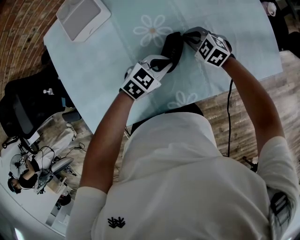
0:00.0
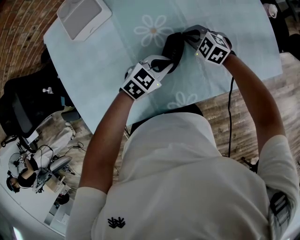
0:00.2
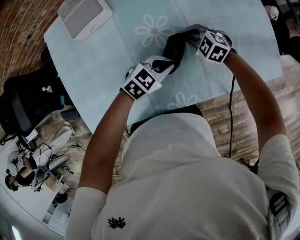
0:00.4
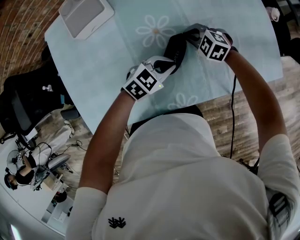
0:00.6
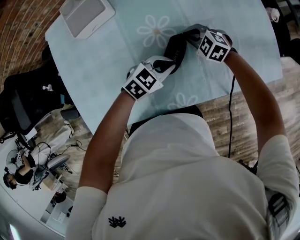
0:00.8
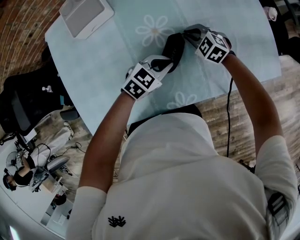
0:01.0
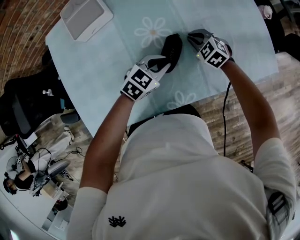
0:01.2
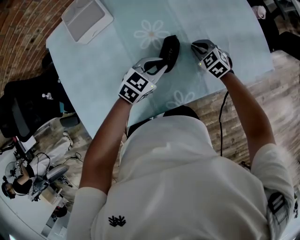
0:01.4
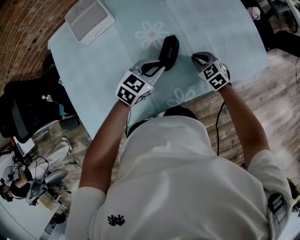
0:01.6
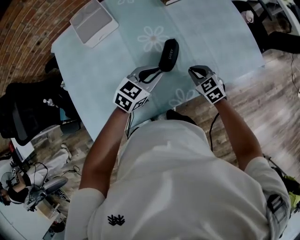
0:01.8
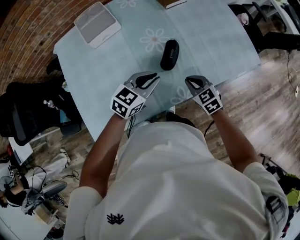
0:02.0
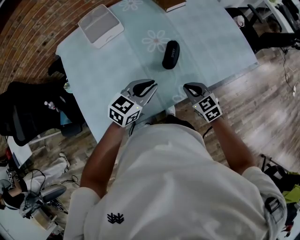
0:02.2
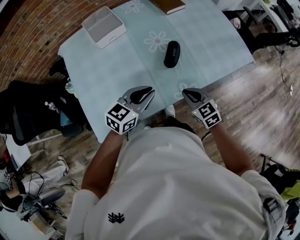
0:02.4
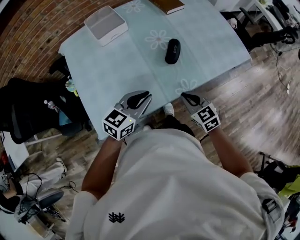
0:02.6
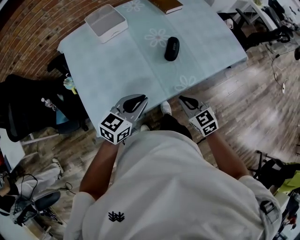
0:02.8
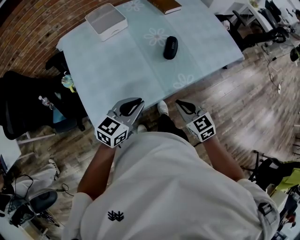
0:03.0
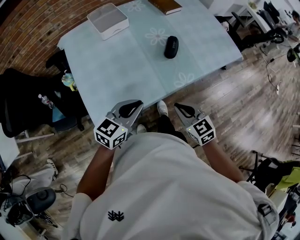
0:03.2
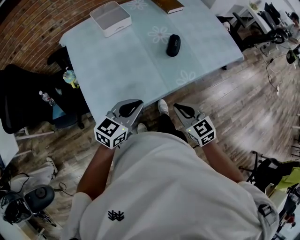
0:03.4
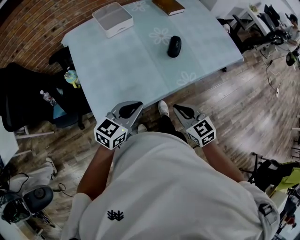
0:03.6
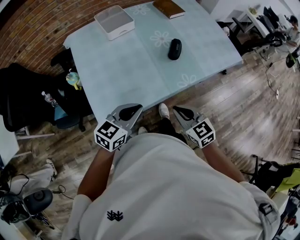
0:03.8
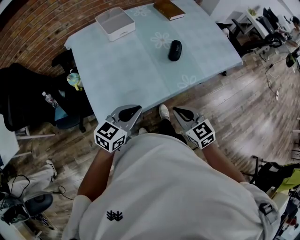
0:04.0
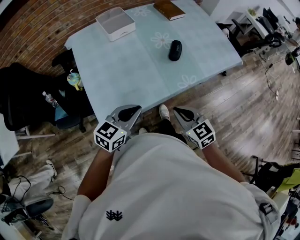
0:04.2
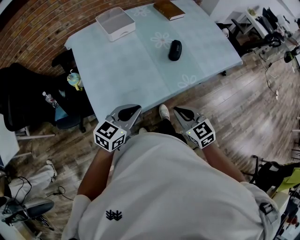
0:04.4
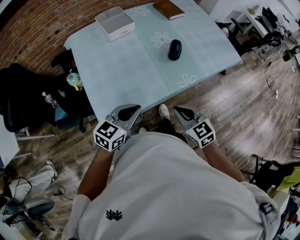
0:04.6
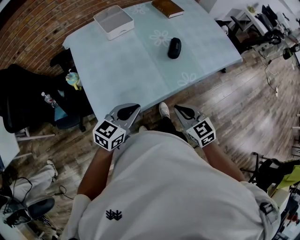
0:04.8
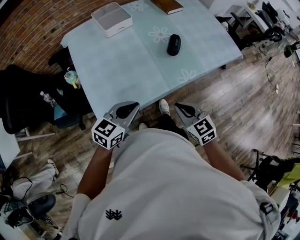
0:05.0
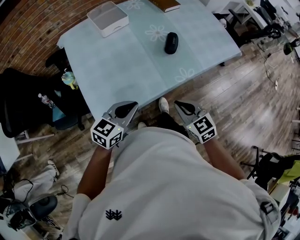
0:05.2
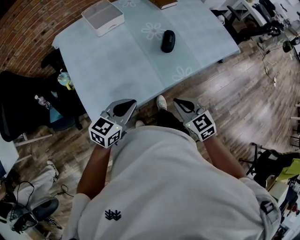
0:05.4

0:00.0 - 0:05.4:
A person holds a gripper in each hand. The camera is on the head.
0:00.0 - 0:01.4: The right gripper changes place by some 5 cm.
0:01.4 - 0:02.8: The left gripper heads backward, to the left and upward, covering some 35 cm, and turns by some 20 degrees, while the right gripper moves backward, roughly 35 cm, and swivels approximately 20 degrees.
0:02.8 - 0:04.0: The two grippers go approximately 10 cm backward and to the left.
0:04.0 - 0:05.4: The grippers make only small movements.

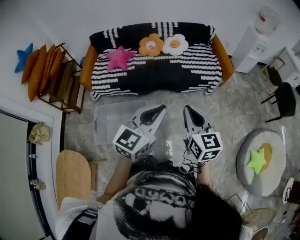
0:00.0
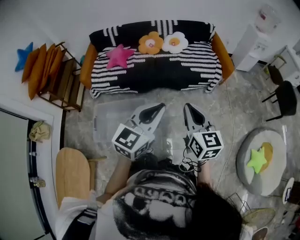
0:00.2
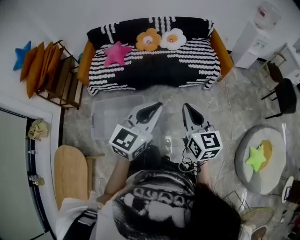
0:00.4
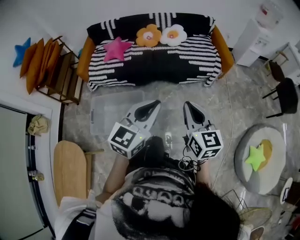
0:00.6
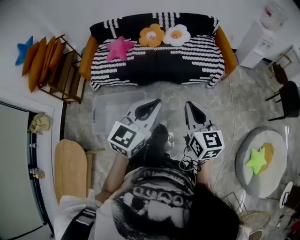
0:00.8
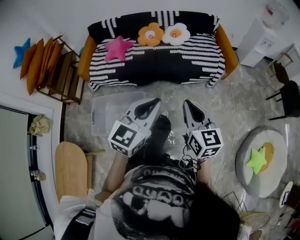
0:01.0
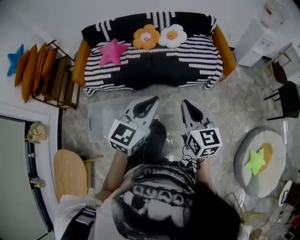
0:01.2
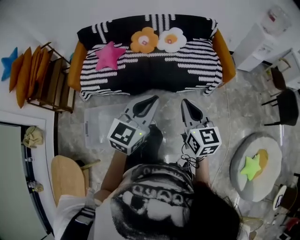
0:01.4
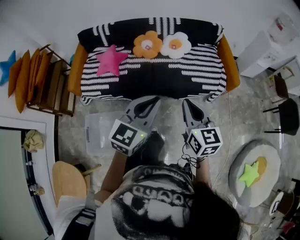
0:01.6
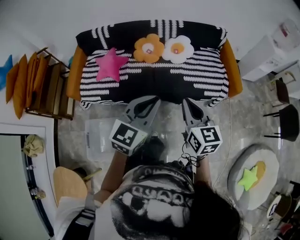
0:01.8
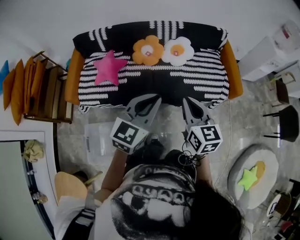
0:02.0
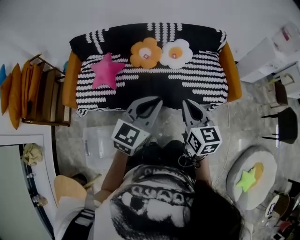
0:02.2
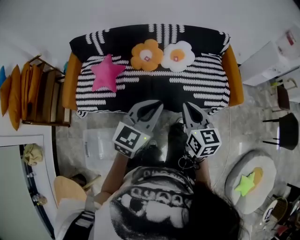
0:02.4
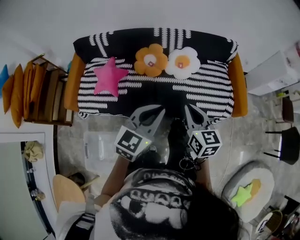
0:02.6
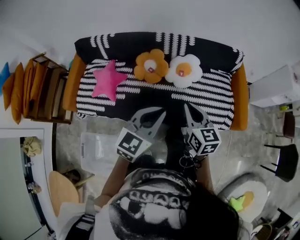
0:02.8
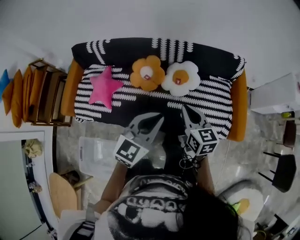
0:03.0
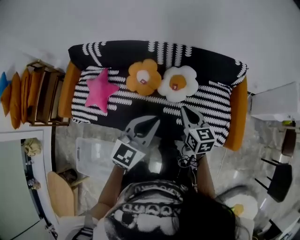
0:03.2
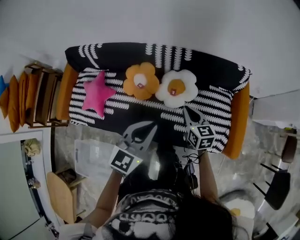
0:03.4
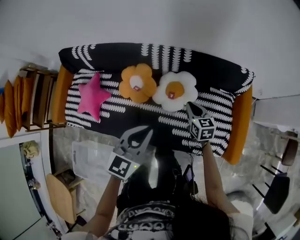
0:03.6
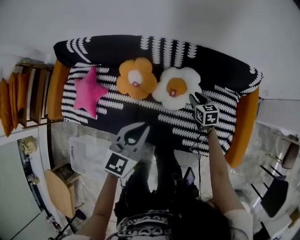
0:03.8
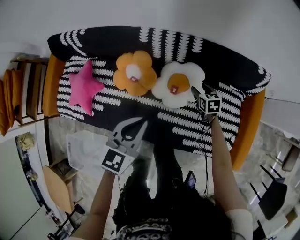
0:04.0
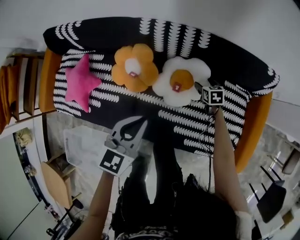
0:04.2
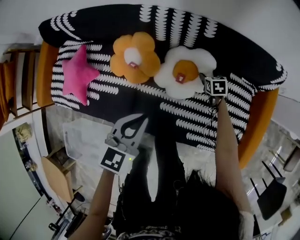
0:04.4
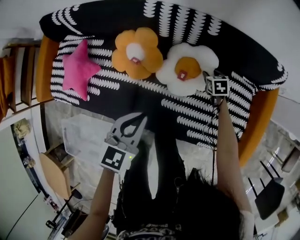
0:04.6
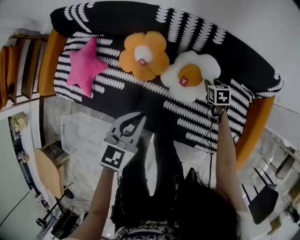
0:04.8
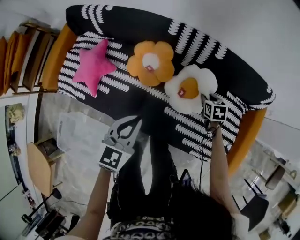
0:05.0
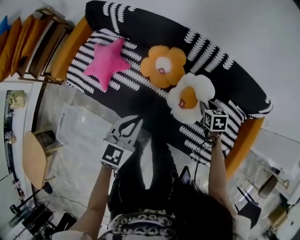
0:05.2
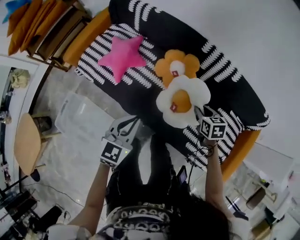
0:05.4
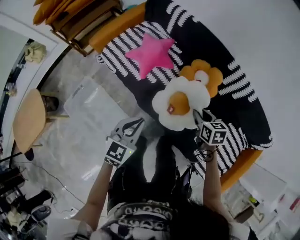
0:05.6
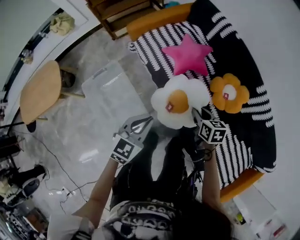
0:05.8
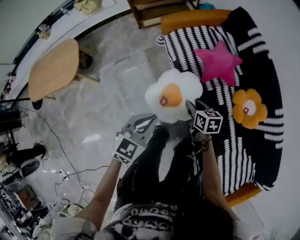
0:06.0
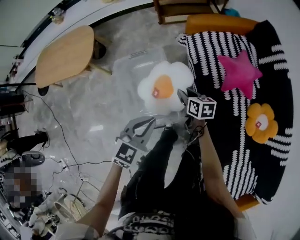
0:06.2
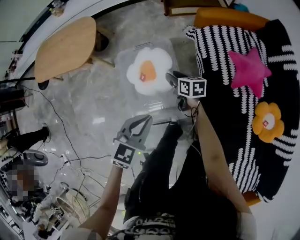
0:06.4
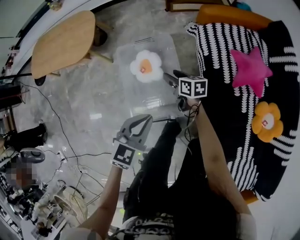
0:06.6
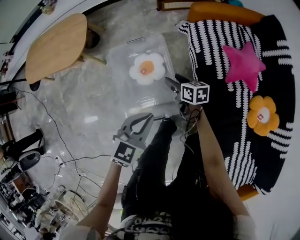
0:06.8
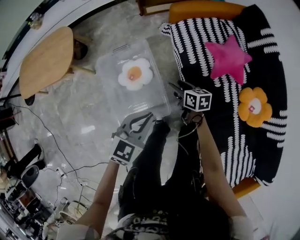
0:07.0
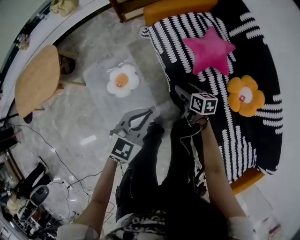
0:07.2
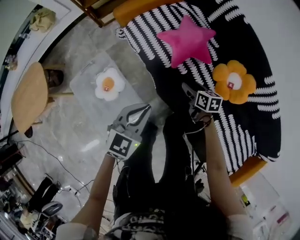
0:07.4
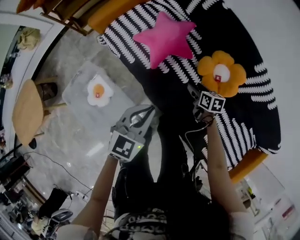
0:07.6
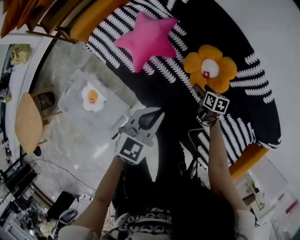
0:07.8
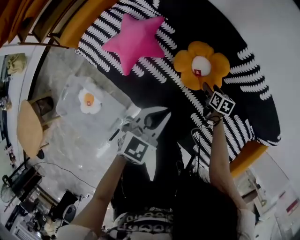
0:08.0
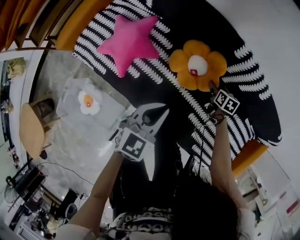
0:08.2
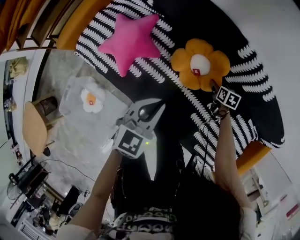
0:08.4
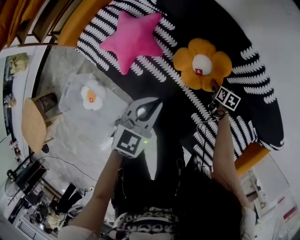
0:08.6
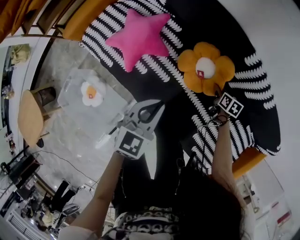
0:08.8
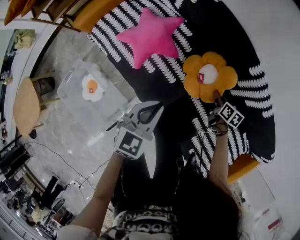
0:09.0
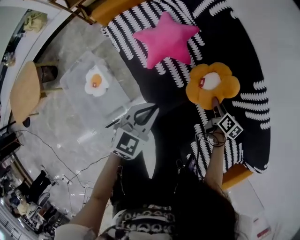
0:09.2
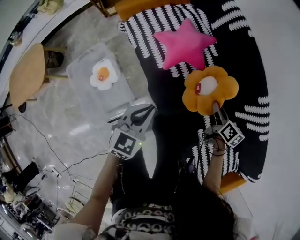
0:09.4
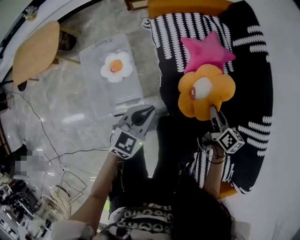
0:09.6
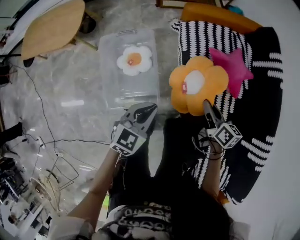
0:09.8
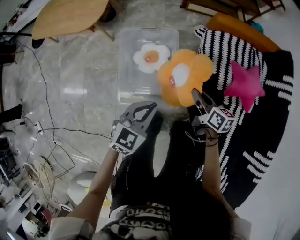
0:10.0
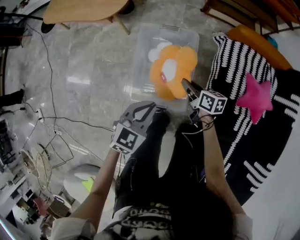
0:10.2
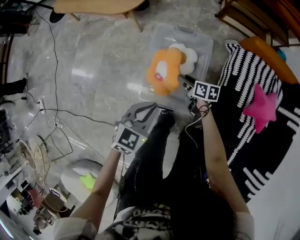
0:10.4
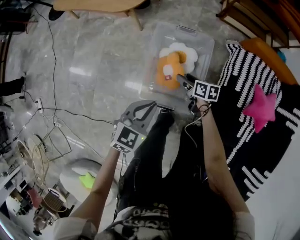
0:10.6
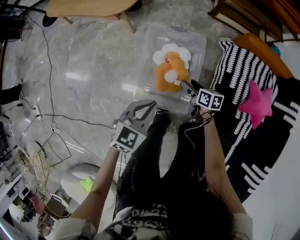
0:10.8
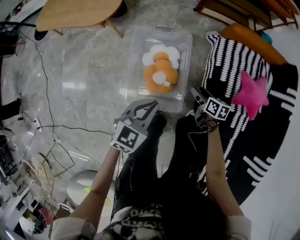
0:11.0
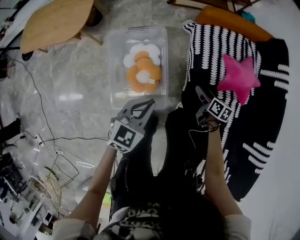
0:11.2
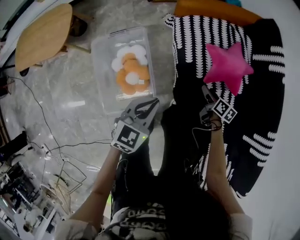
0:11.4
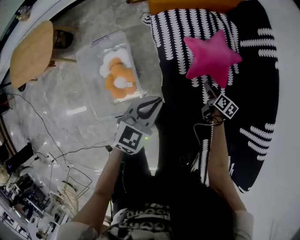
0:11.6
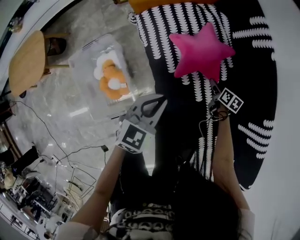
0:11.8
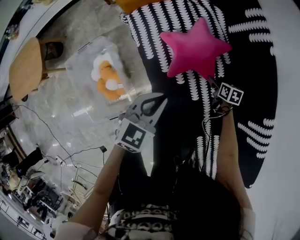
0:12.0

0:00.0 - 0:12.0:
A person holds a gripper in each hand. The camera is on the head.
0:00.0 - 0:01.6: The grippers both shift forward by some 30 cm.
0:01.6 - 0:03.0: Both grippers are carried forward, approximately 40 cm.
0:03.0 - 0:04.4: The right gripper is displaced downward and forward by approximately 60 cm, tips its fingers downward by roughly 40 degrees, and opens its fingers. Meanwhile the left gripper goes about 35 cm downward and forward, and turns by about 30 degrees.
0:04.4 - 0:06.0: The pair of grippers is taken approximately 70 cm. The right gripper rotates approximately 50 degrees, and closes. The left gripper swivels about 50 degrees.
0:06.0 - 0:07.6: The left gripper ends up roughly 25 cm from where it was, and turns by about 20 degrees. The right gripper ends up roughly 35 cm from where it was, turns by approximately 30 degrees, and opens its fingers.
0:07.6 - 0:09.0: The right gripper goes downward and returns, approximately 10 cm each way, and closes its fingers.
0:09.0 - 0:10.4: The two grippers travel together, approximately 80 cm. The left gripper swivels some 50 degrees; the right gripper swivels approximately 80 degrees, and opens up.
0:10.4 - 0:12.0: The two grippers travel together, roughly 70 cm. The right gripper changes its angle by about 40 degrees, and opens. Meanwhile the left gripper changes its angle by roughly 40 degrees.

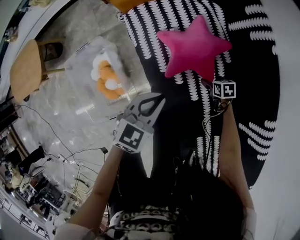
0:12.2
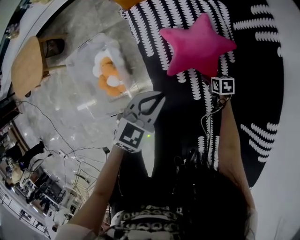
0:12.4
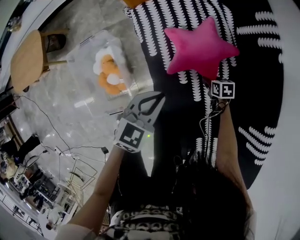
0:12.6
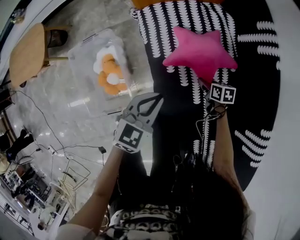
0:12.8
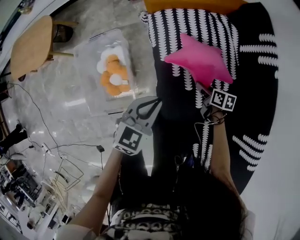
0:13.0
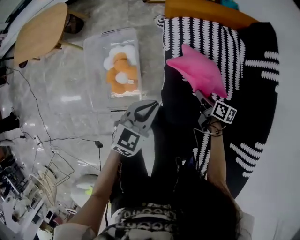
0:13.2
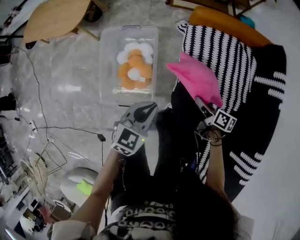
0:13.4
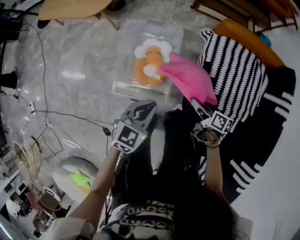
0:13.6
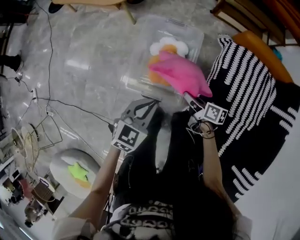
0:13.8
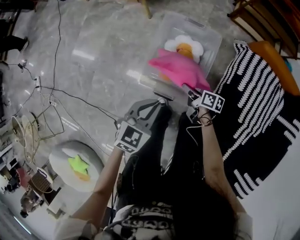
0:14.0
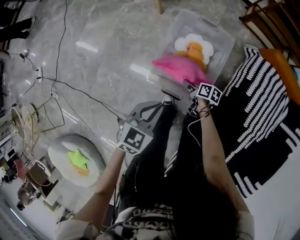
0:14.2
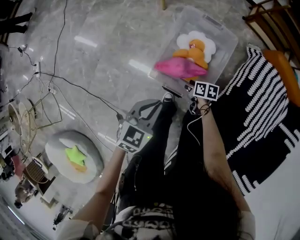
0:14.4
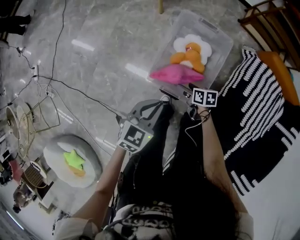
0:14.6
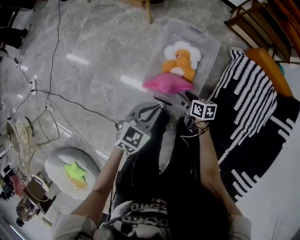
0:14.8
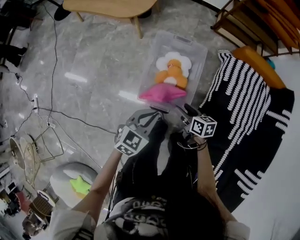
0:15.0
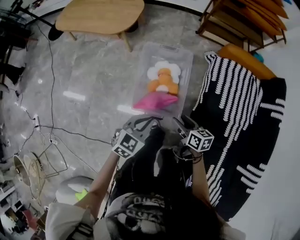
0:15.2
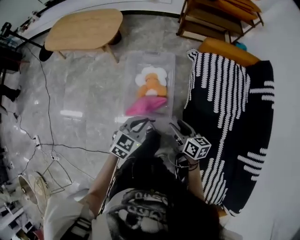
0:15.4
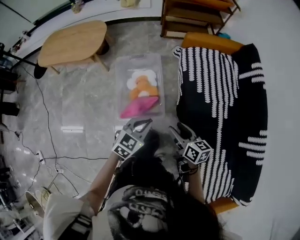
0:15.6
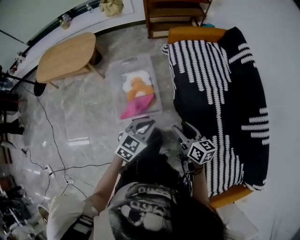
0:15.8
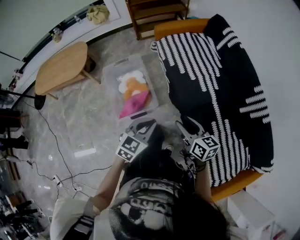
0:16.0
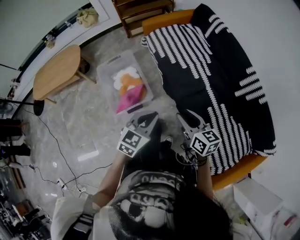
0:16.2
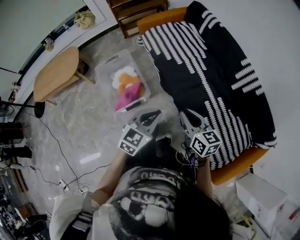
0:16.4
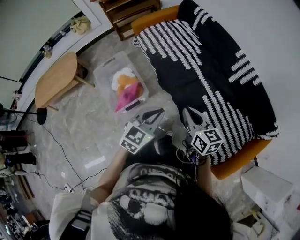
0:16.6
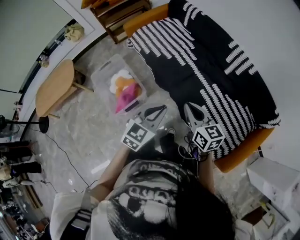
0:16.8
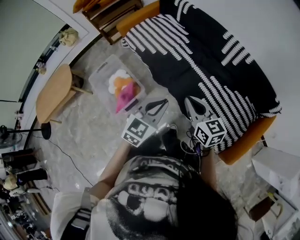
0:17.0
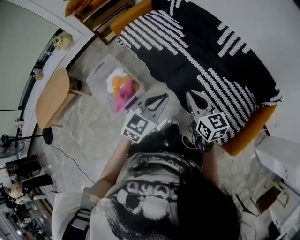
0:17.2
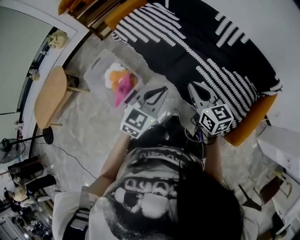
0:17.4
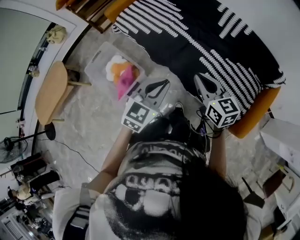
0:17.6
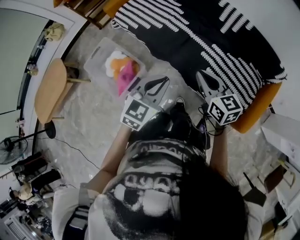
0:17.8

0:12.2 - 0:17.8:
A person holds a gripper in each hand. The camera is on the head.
0:12.2 - 0:13.6: The right gripper goes some 50 cm to the left and upward, tilts its fingers roughly 40 degrees upward, and closes up. Meanwhile the left gripper is displaced to the left by some 40 cm, and turns by some 30 degrees.
0:13.6 - 0:15.0: Both grippers move to the left, approximately 20 cm. The right gripper rotates some 30 degrees, and opens.
0:15.0 - 0:16.4: The two grippers travel together, approximately 50 cm. The right gripper swivels roughly 50 degrees, and closes. The left gripper swivels roughly 40 degrees.
0:16.4 - 0:17.8: The right gripper is displaced to the right by some 5 cm; the left gripper turns by some 20 degrees.
